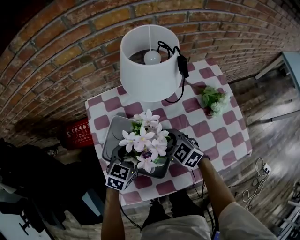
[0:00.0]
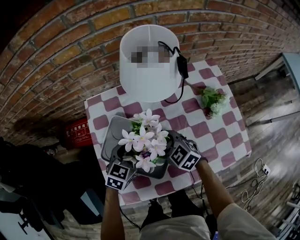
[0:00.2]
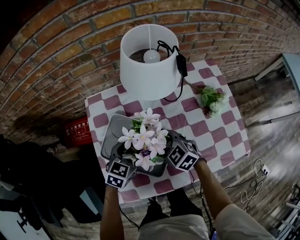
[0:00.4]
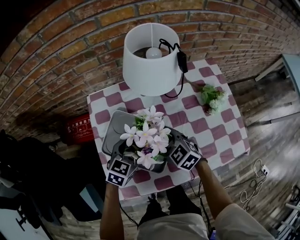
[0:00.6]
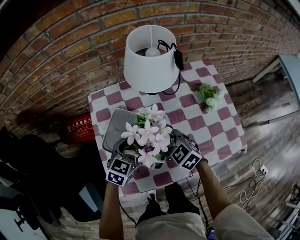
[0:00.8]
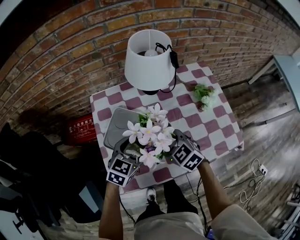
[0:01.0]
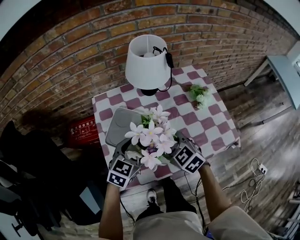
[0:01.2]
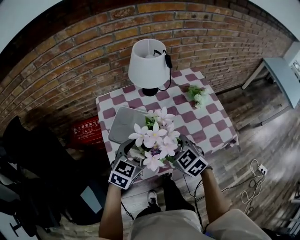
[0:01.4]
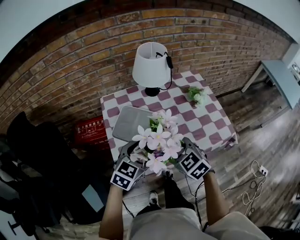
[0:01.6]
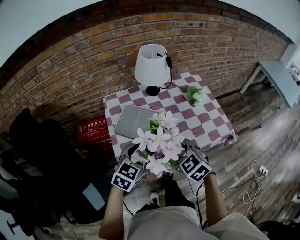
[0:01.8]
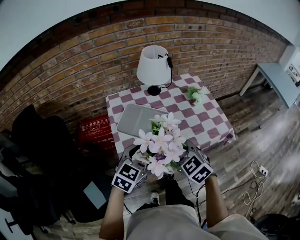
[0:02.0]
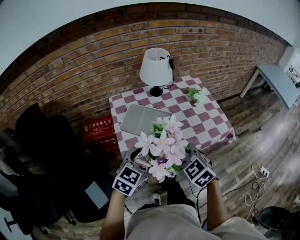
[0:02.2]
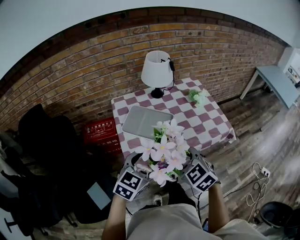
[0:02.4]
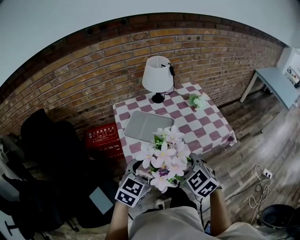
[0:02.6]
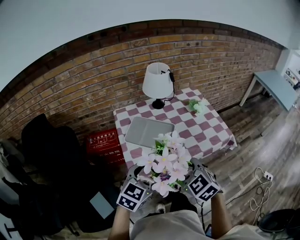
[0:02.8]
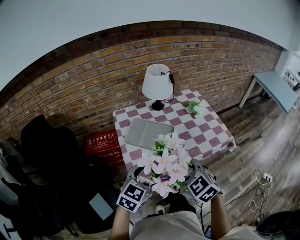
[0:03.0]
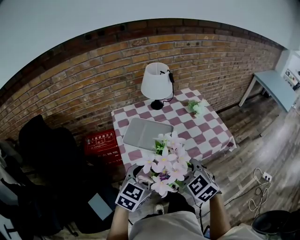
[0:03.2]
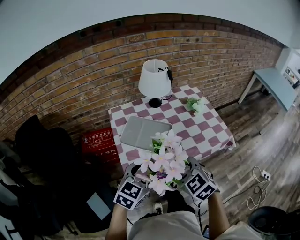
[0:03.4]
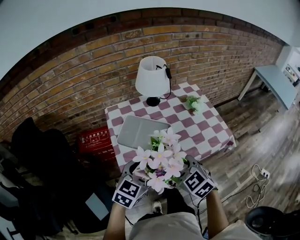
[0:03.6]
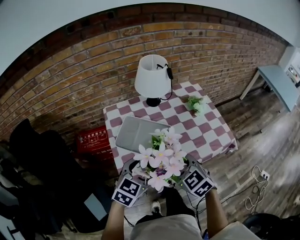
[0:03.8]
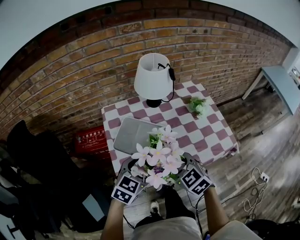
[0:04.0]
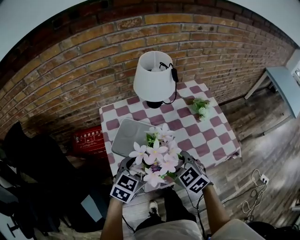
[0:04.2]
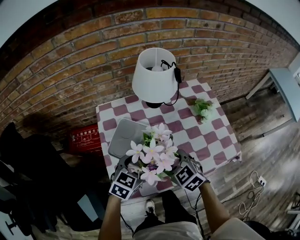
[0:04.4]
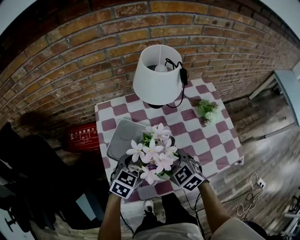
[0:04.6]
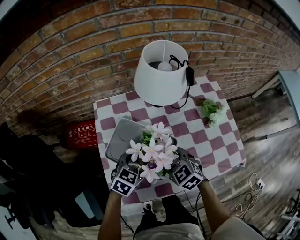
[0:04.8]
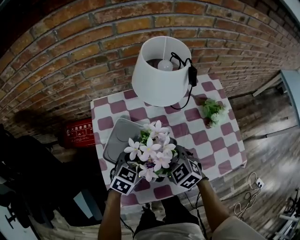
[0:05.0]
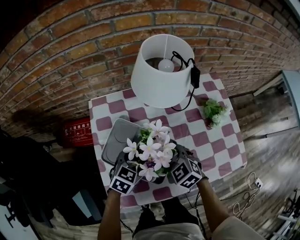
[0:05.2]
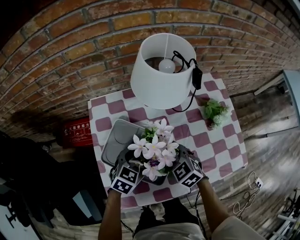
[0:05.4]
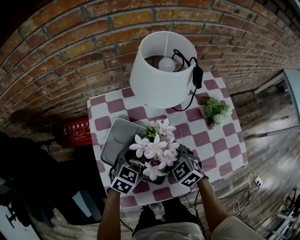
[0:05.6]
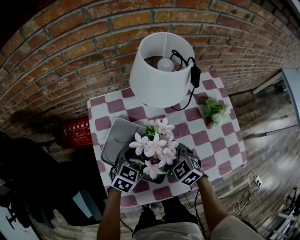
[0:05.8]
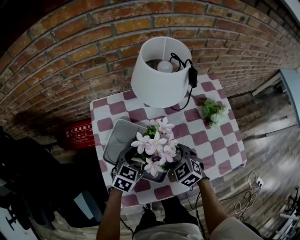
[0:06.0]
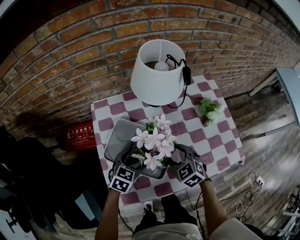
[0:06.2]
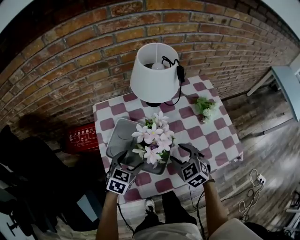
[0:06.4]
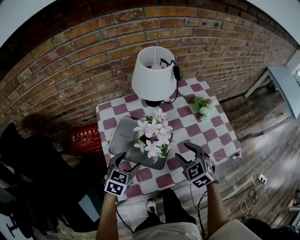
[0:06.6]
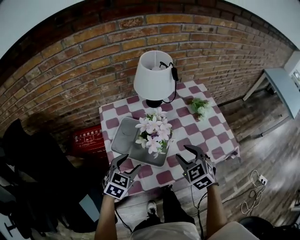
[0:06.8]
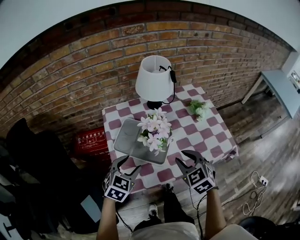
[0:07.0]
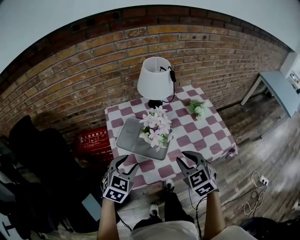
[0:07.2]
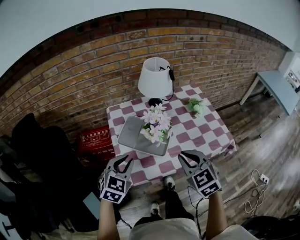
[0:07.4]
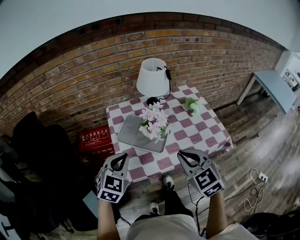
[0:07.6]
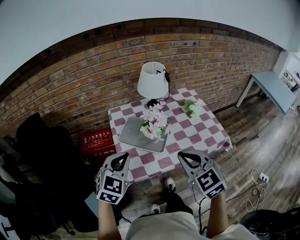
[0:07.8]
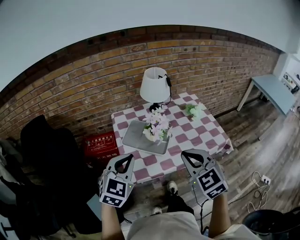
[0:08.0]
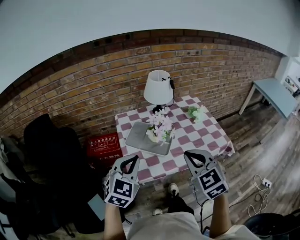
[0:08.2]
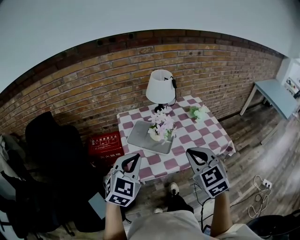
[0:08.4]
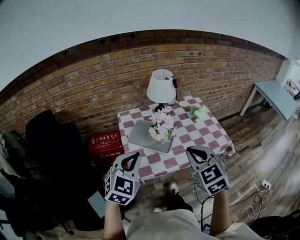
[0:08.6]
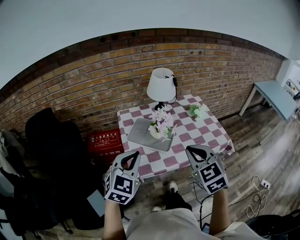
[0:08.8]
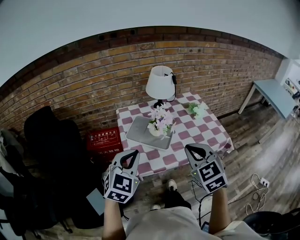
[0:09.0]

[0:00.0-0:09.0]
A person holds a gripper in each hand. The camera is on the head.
0:00.0 to 0:01.6: Both grippers travel together backward and upward, approximately 25 cm.
0:01.6 to 0:03.0: Both grippers move backward and upward, some 15 cm.
0:03.0 to 0:04.4: The grippers both shift forward and downward by approximately 25 cm.
0:04.4 to 0:06.0: The grippers both shift downward and forward by approximately 10 cm.
0:06.0 to 0:07.6: The grippers both shift upward and backward by approximately 35 cm. The right gripper turns by approximately 20 degrees, and closes up; the left gripper changes its angle by about 30 degrees, and closes up.
0:07.6 to 0:09.0: The left gripper is displaced backward and upward by about 10 cm; the right gripper travels upward by roughly 5 cm.

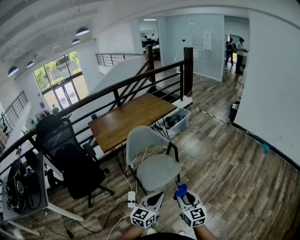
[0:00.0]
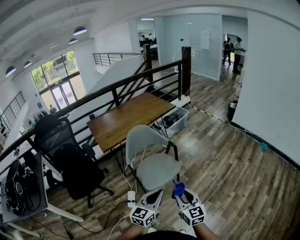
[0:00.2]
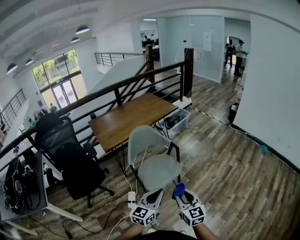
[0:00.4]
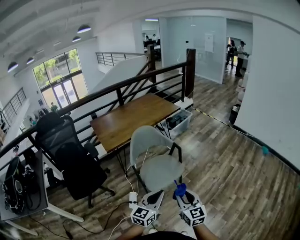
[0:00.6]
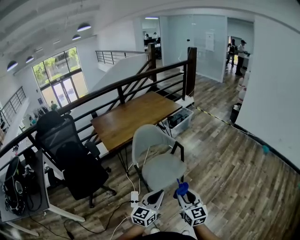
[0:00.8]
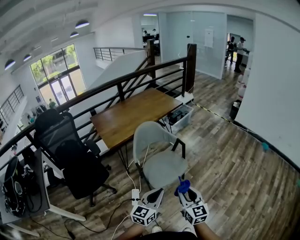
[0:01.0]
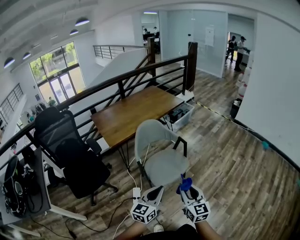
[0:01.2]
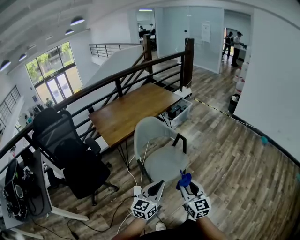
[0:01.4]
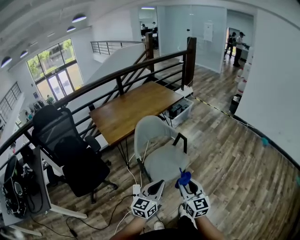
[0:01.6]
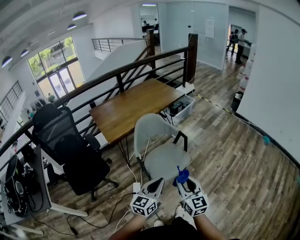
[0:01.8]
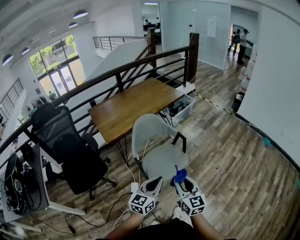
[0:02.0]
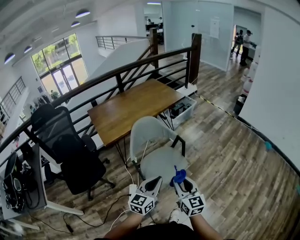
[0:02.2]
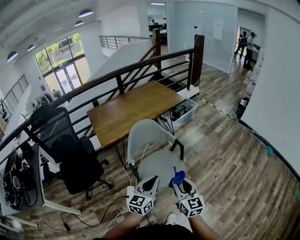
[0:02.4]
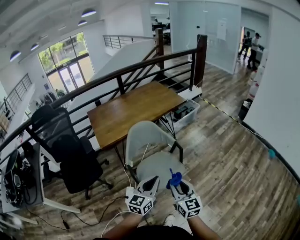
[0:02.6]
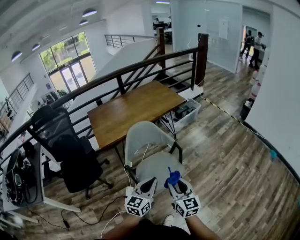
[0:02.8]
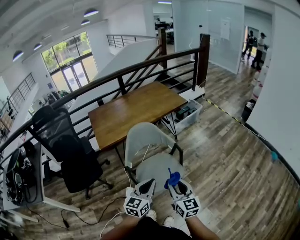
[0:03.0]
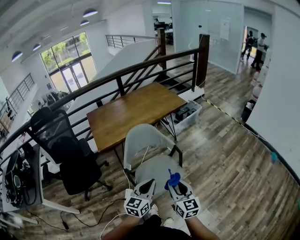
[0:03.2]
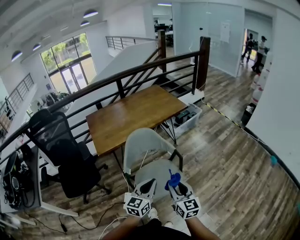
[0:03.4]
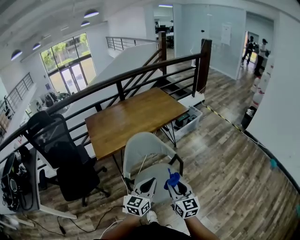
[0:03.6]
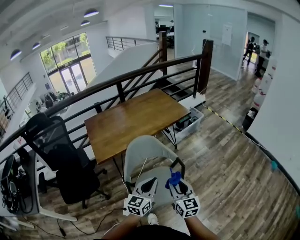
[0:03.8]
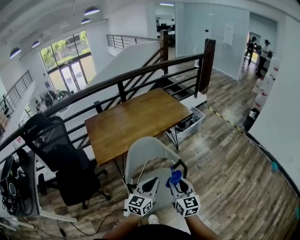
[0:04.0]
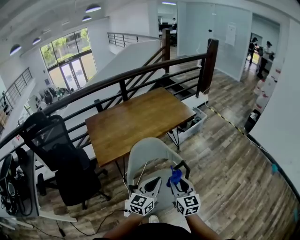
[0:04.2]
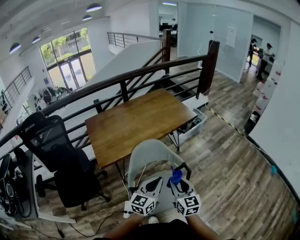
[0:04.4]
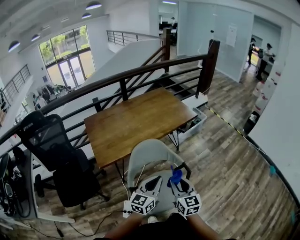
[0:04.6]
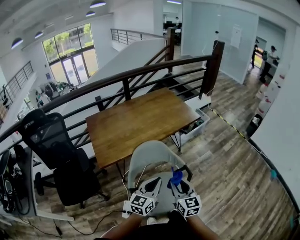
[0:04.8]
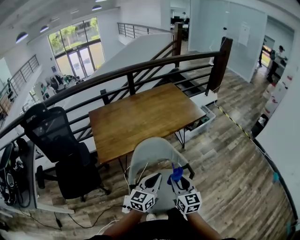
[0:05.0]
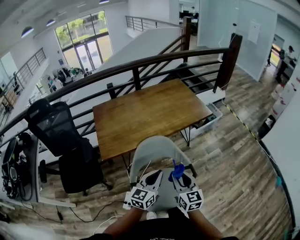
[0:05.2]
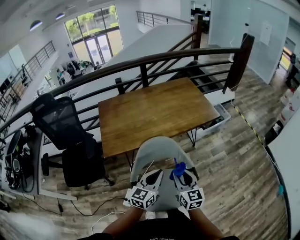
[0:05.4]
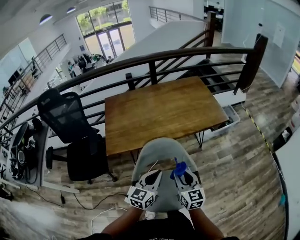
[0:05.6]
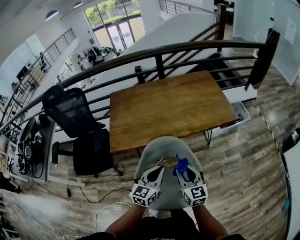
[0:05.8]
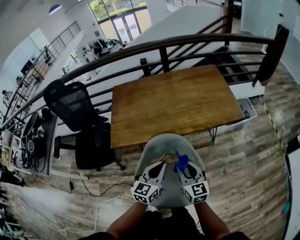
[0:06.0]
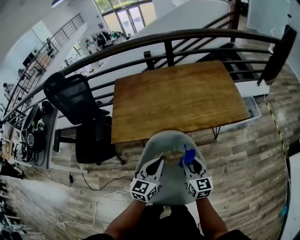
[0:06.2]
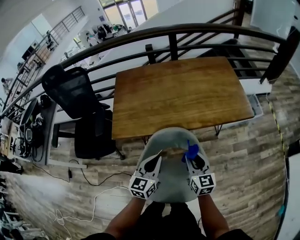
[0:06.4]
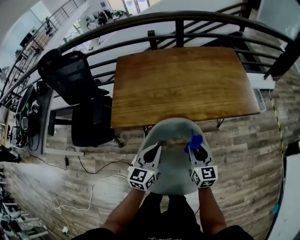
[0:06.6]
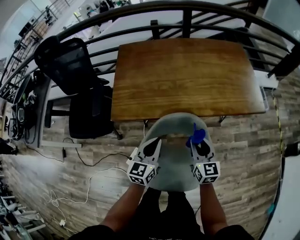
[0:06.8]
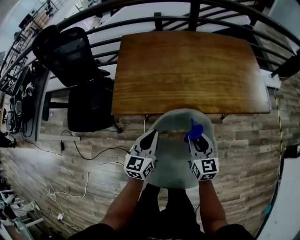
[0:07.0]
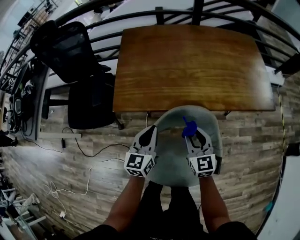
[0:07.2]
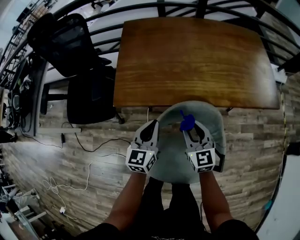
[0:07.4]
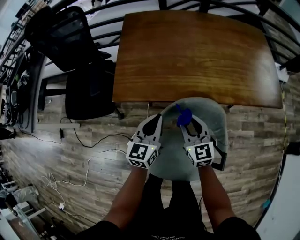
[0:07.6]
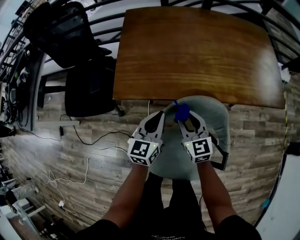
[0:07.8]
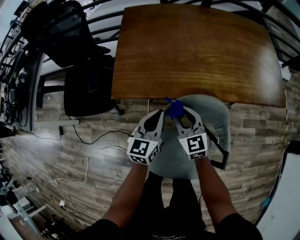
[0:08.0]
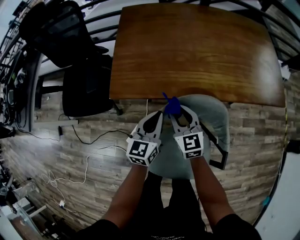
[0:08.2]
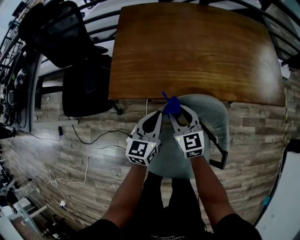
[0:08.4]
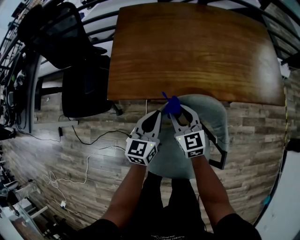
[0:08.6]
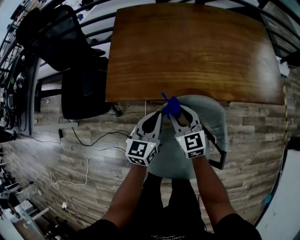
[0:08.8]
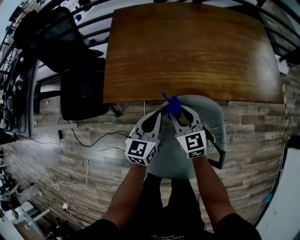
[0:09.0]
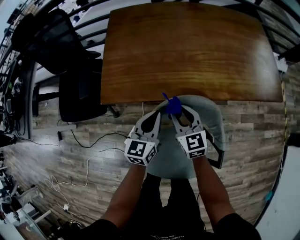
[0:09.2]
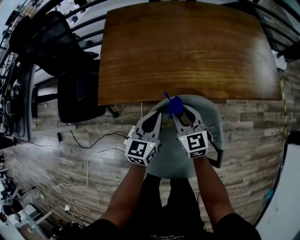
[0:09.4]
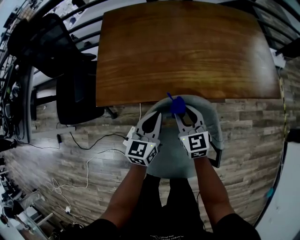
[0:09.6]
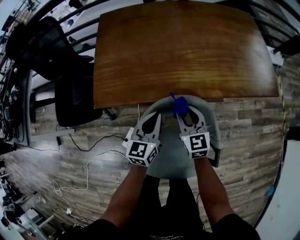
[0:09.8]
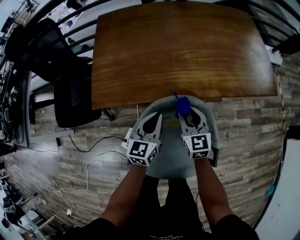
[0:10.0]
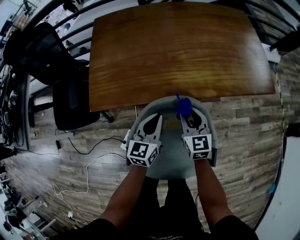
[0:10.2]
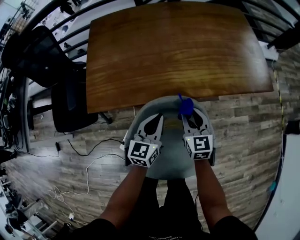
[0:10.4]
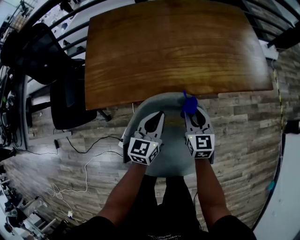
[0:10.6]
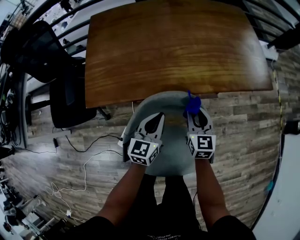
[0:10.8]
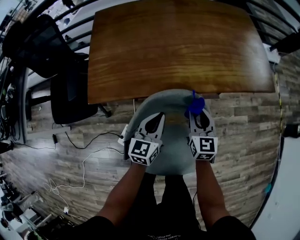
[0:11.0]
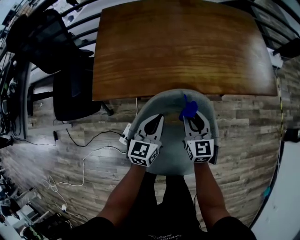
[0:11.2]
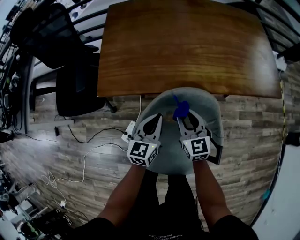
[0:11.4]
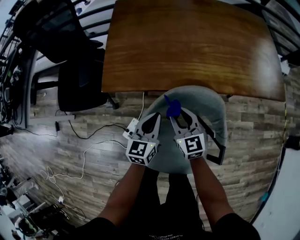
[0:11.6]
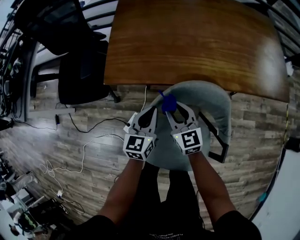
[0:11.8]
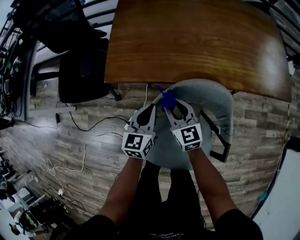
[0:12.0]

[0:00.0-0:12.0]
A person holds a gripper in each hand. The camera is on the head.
0:00.0 to 0:01.6: Both grippers move to the left, some 15 cm.
0:01.6 to 0:03.0: The two grippers go approximately 15 cm forward and to the right.
0:03.0 to 0:04.4: The two grippers go roughly 20 cm forward.
0:04.4 to 0:06.0: The right gripper shifts by roughly 20 cm, and changes its angle by roughly 30 degrees. Meanwhile the left gripper shifts by roughly 20 cm, and swivels about 30 degrees.
0:06.0 to 0:07.6: Both grippers move to the left, downward and forward, about 25 cm.
0:07.6 to 0:09.0: The grippers move only a little.
0:09.0 to 0:10.4: The left gripper shifts approximately 10 cm to the right, while the right gripper travels to the right by roughly 15 cm.
0:10.4 to 0:12.0: Both grippers travel together to the left, some 15 cm. The right gripper swivels approximately 20 degrees.

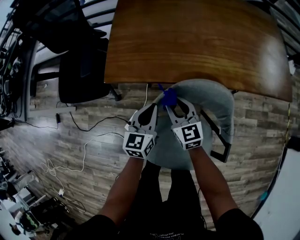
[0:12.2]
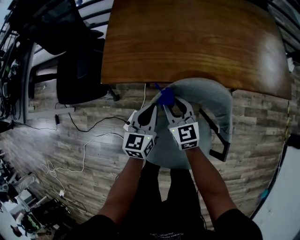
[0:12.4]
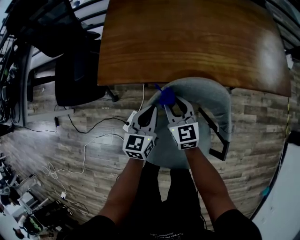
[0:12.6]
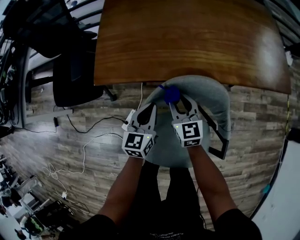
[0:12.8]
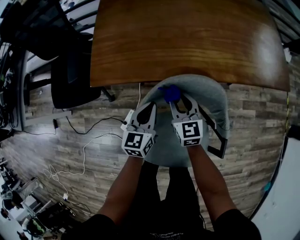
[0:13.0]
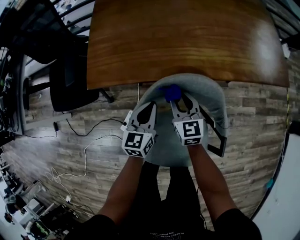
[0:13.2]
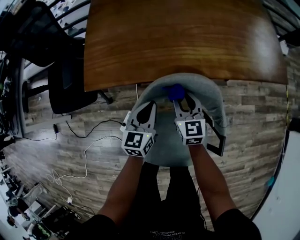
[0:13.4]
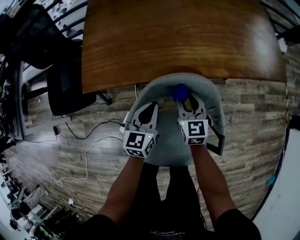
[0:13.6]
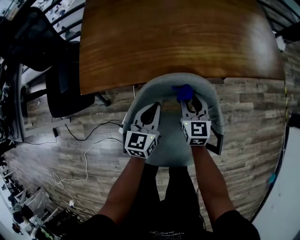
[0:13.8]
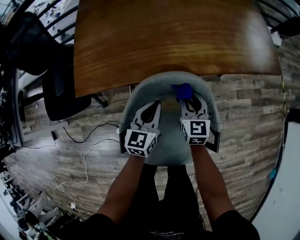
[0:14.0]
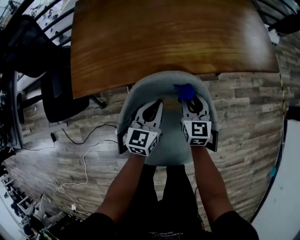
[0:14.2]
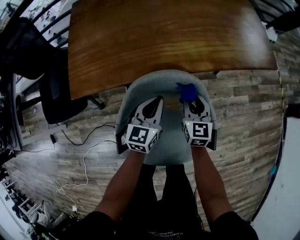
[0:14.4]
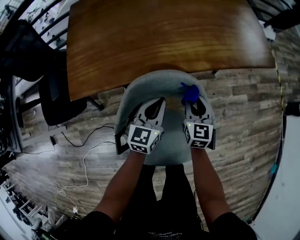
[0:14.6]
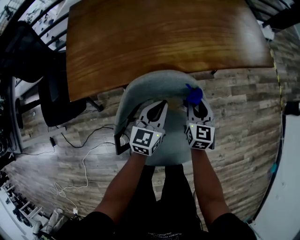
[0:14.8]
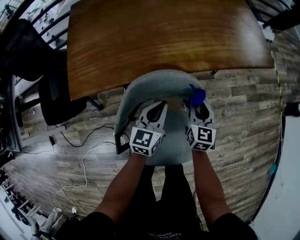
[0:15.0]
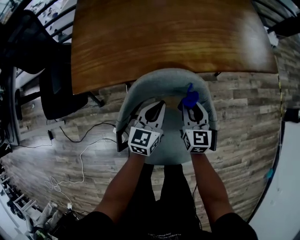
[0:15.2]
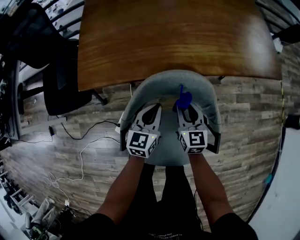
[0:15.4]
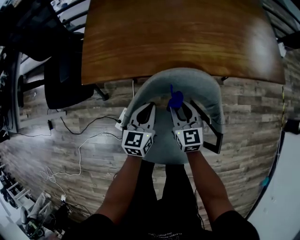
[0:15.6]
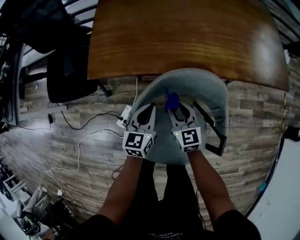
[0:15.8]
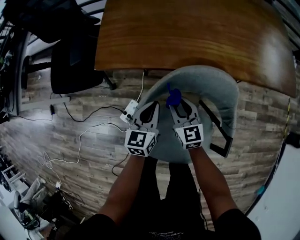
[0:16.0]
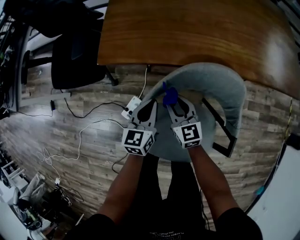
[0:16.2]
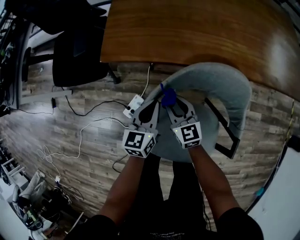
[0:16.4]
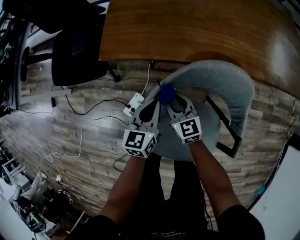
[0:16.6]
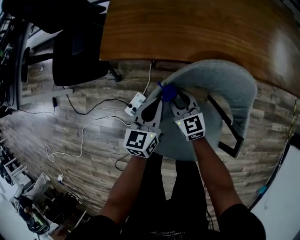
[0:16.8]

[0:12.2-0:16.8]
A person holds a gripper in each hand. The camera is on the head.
0:12.2 to 0:13.8: The right gripper is displaced to the right by some 15 cm, and rotates some 20 degrees; the left gripper shifts approximately 10 cm to the right.
0:13.8 to 0:15.2: The two grippers go some 5 cm to the right.
0:15.2 to 0:16.8: The right gripper ends up about 25 cm from where it was, and rotates some 40 degrees; the left gripper shifts by about 15 cm.
